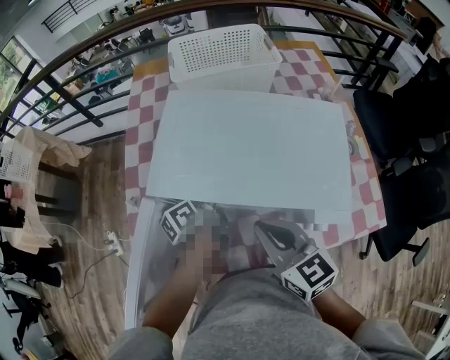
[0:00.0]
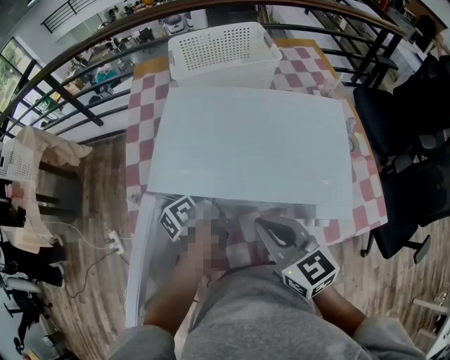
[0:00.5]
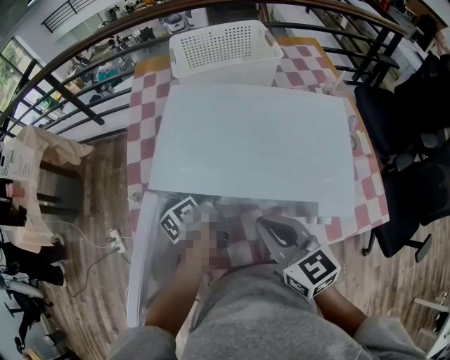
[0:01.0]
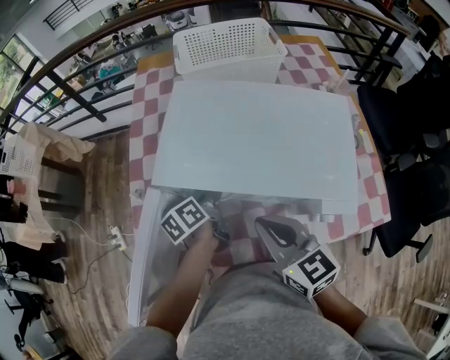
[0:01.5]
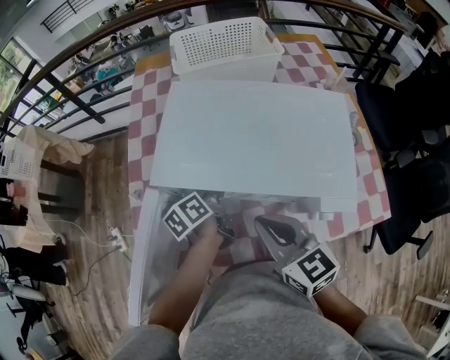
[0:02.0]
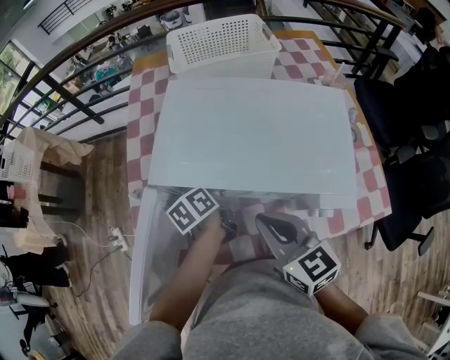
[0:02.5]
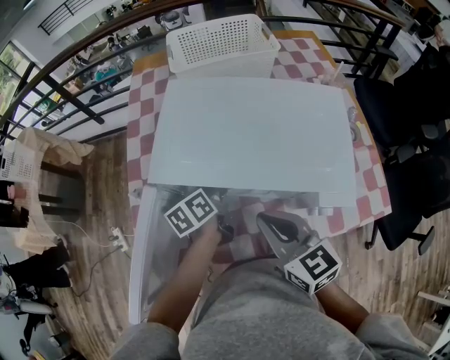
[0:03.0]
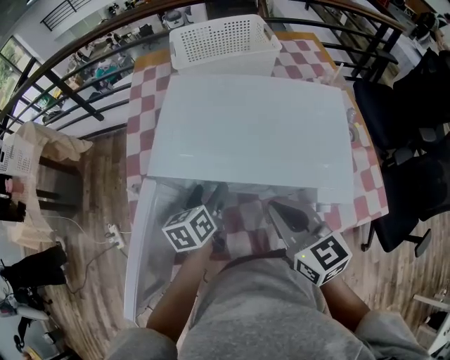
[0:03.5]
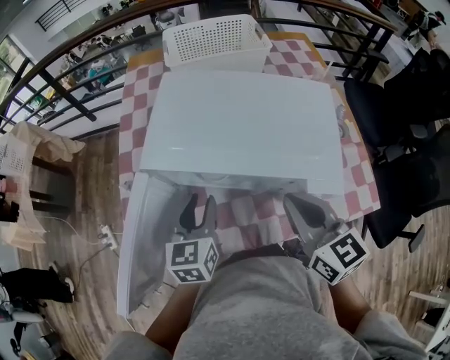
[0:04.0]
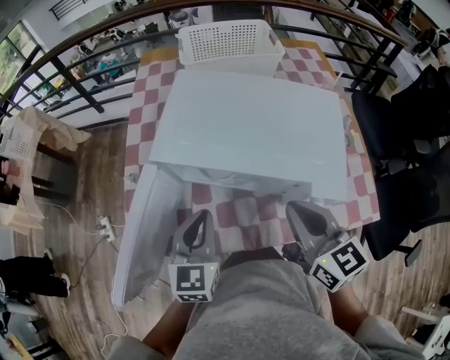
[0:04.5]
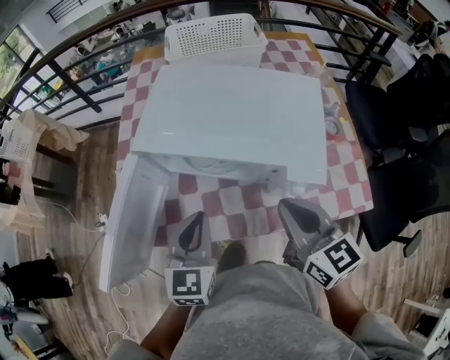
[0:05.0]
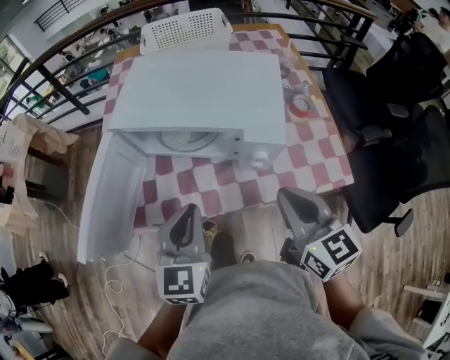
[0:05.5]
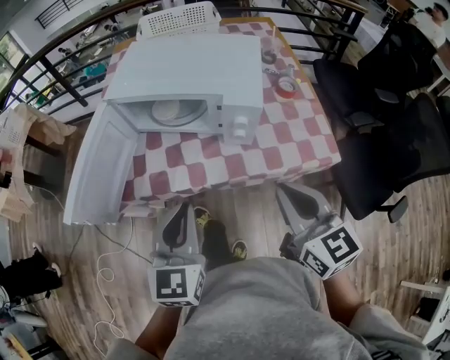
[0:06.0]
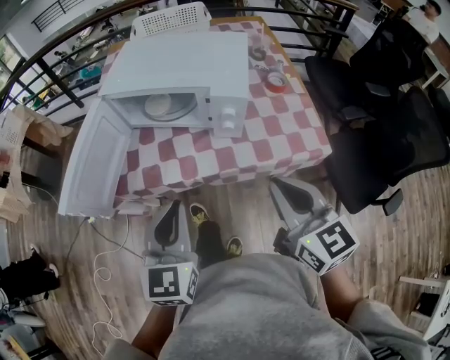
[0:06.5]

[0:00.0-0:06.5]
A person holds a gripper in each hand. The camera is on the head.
0:00.0 to 0:02.0: The grippers make only small movements.
0:02.0 to 0:04.5: The left gripper travels backward and upward by roughly 20 cm, rolls clockwise, seen from behind, by some 60 degrees, and closes its fingers, while the right gripper goes roughly 10 cm to the right.
0:04.5 to 0:06.5: Both grippers travel together backward and to the right, approximately 25 cm.

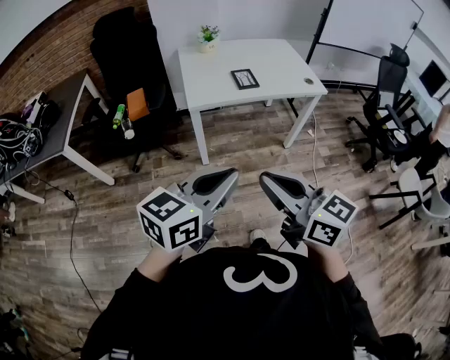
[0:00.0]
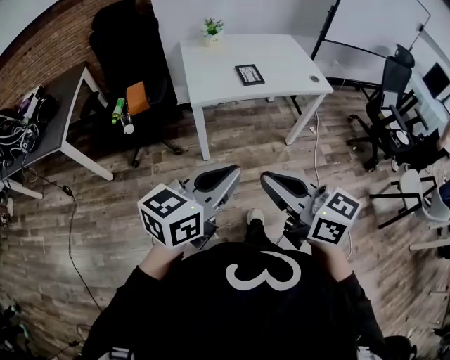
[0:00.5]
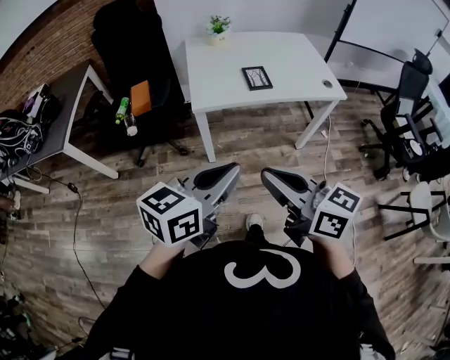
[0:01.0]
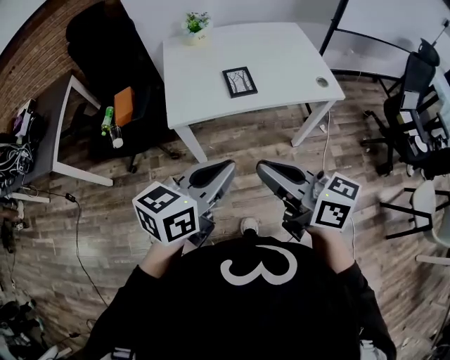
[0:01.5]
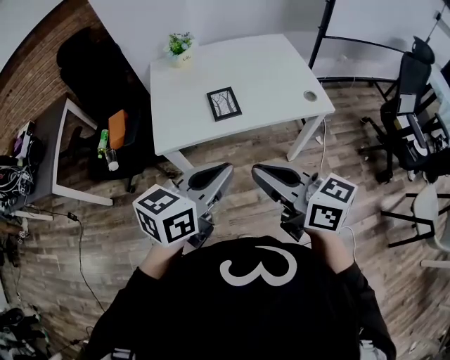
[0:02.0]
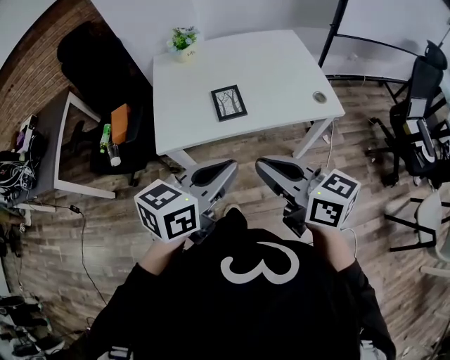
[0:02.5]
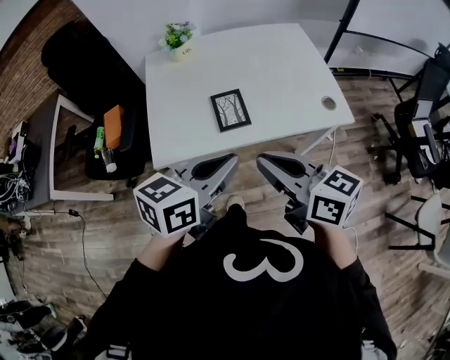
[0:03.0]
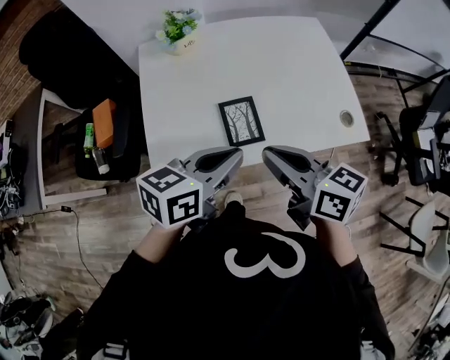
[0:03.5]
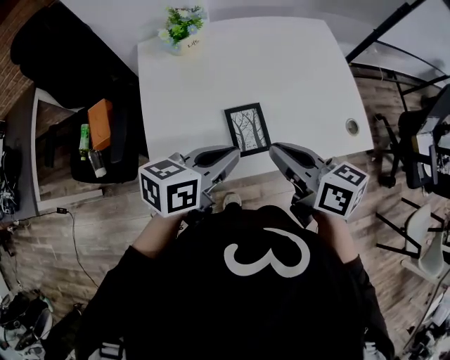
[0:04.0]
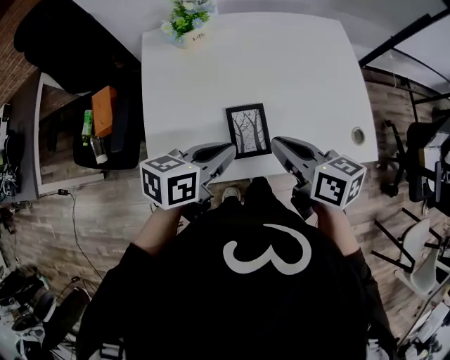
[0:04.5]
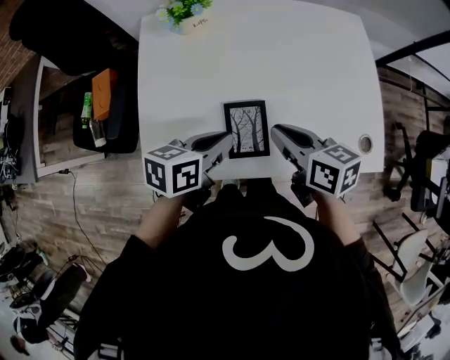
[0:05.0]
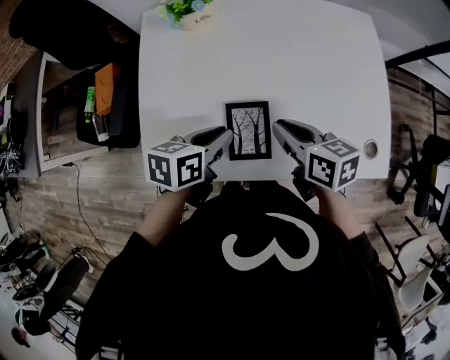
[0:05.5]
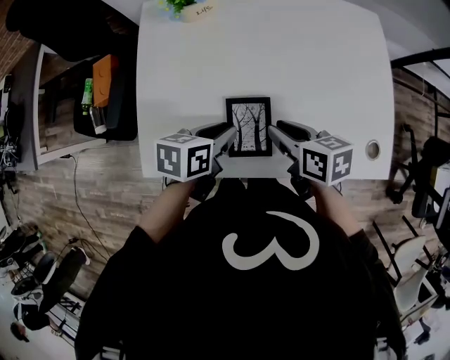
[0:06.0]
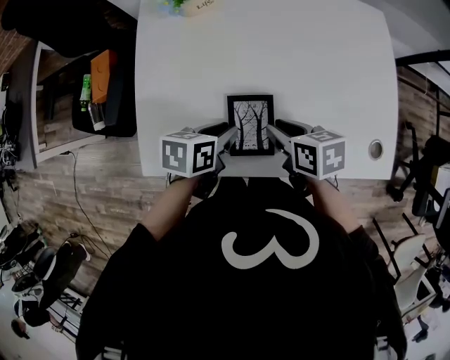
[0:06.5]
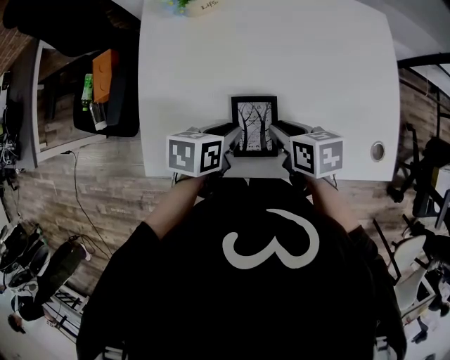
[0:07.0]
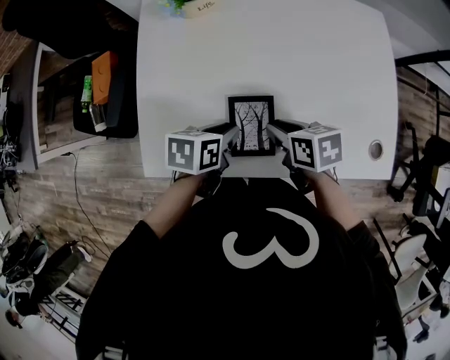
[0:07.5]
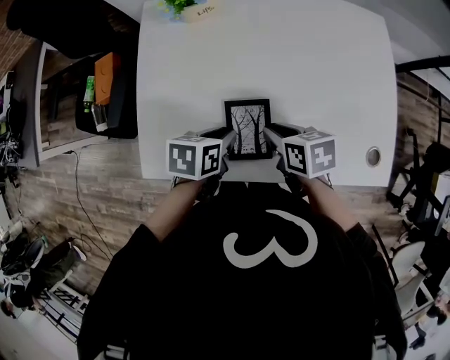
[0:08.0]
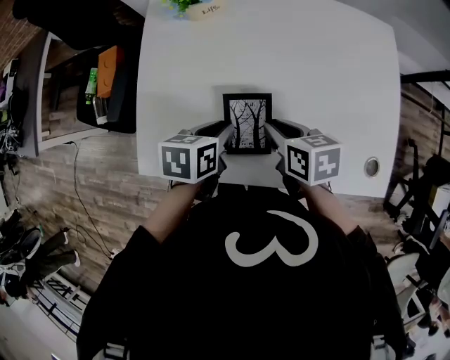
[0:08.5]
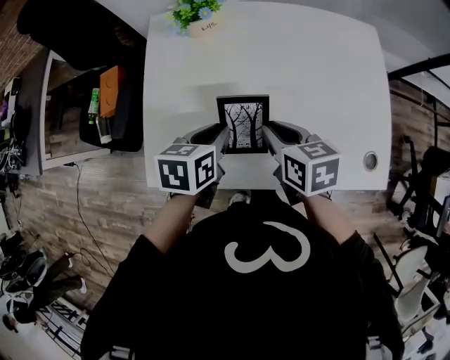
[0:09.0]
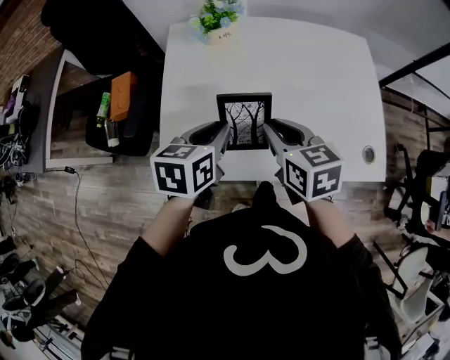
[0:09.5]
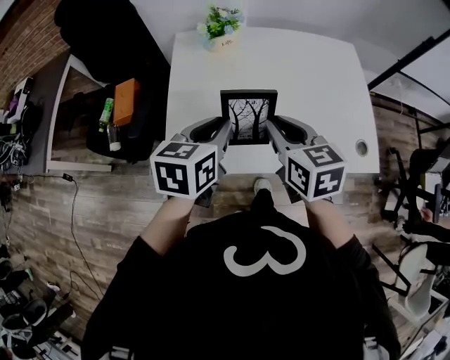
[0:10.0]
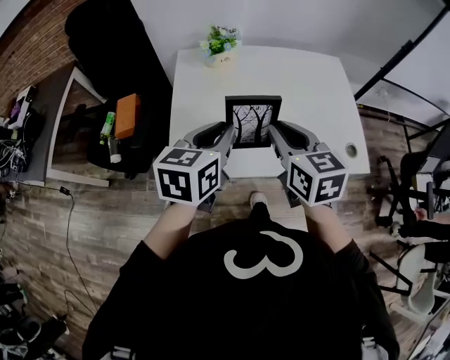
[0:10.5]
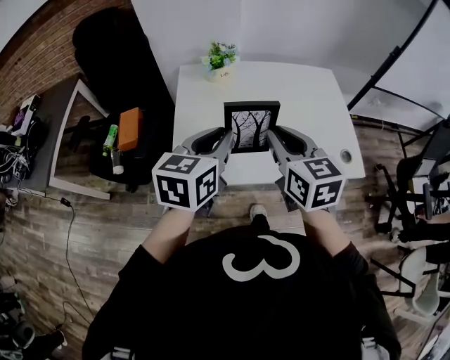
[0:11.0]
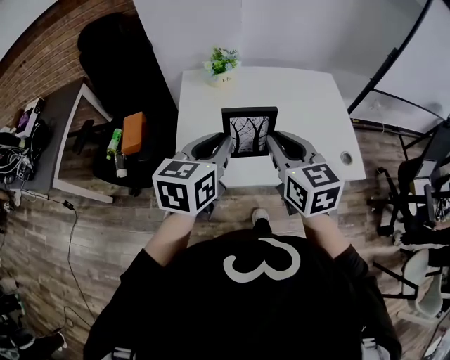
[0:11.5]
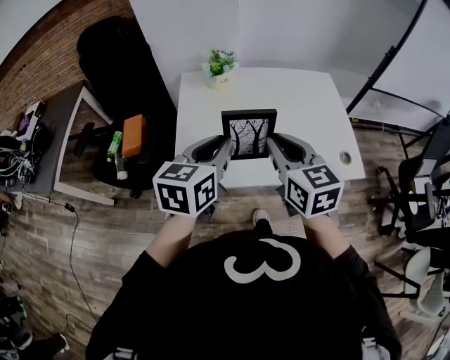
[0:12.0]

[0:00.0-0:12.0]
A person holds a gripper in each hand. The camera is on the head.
0:00.0 to 0:02.0: The two grippers go roughly 35 cm forward and to the right.
0:02.0 to 0:04.0: The grippers both shift forward by approximately 30 cm. The right gripper changes its angle by about 20 degrees.
0:04.0 to 0:06.0: Both grippers travel together downward and forward, some 15 cm. The right gripper turns by some 20 degrees, while the left gripper changes its angle by approximately 30 degrees.
0:06.0 to 0:08.0: The grippers make only small movements.
0:08.0 to 0:10.0: The grippers both shift upward by some 20 cm. The right gripper turns by roughly 40 degrees. The left gripper swivels roughly 30 degrees.
0:10.0 to 0:12.0: The grippers both shift upward and backward by roughly 10 cm.

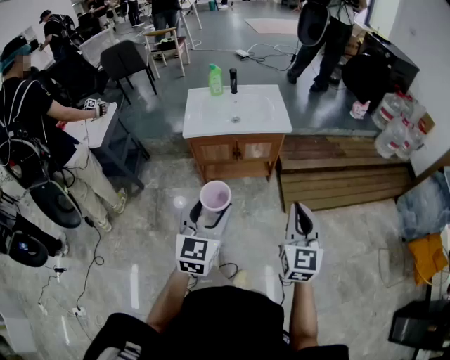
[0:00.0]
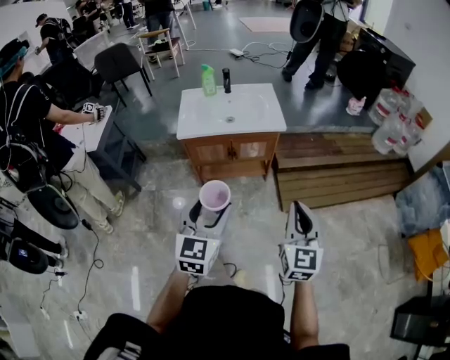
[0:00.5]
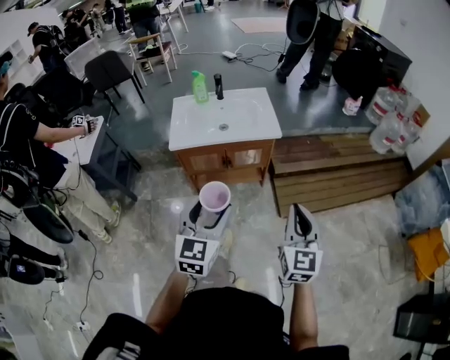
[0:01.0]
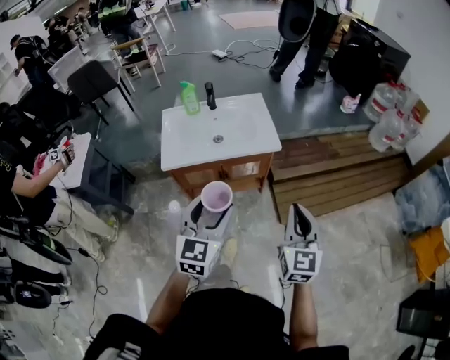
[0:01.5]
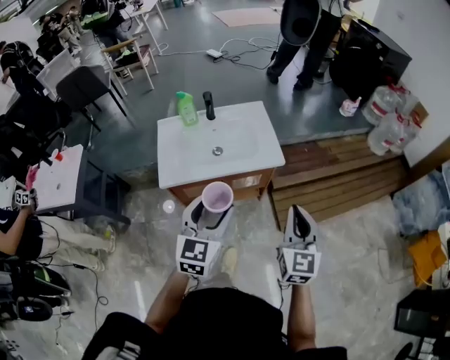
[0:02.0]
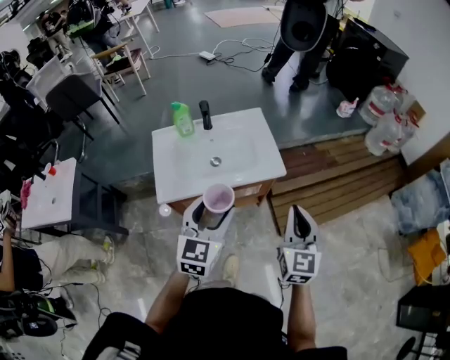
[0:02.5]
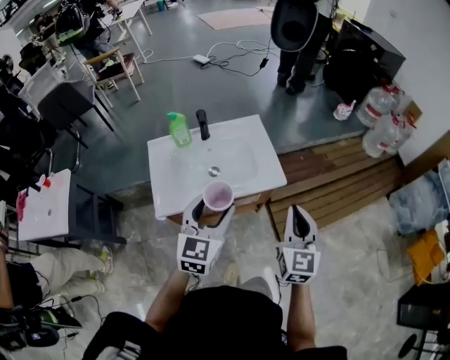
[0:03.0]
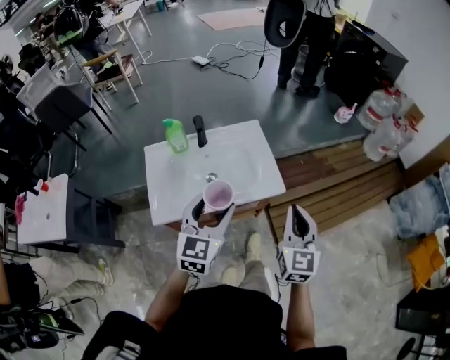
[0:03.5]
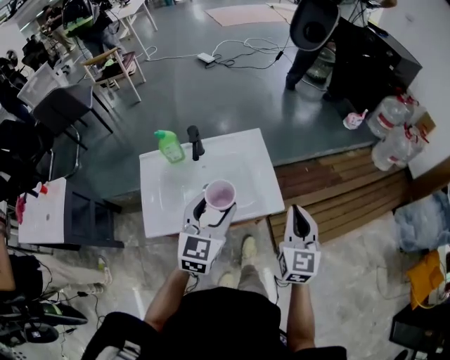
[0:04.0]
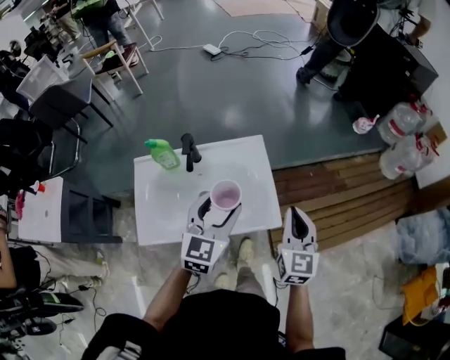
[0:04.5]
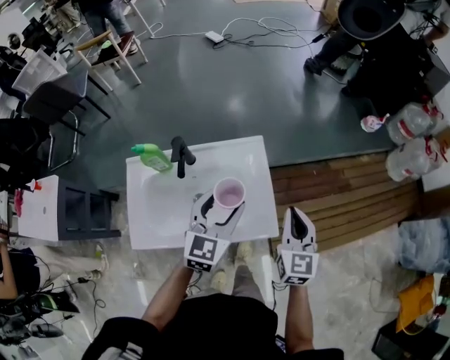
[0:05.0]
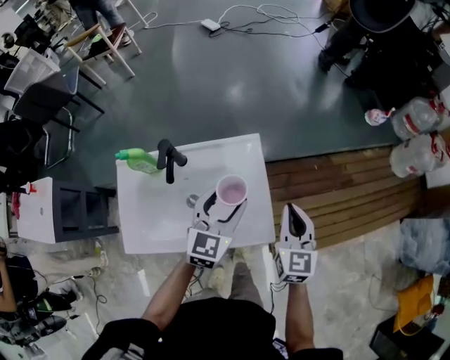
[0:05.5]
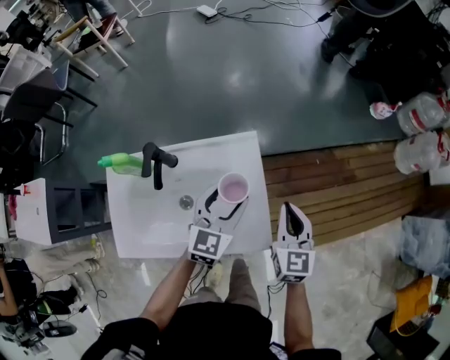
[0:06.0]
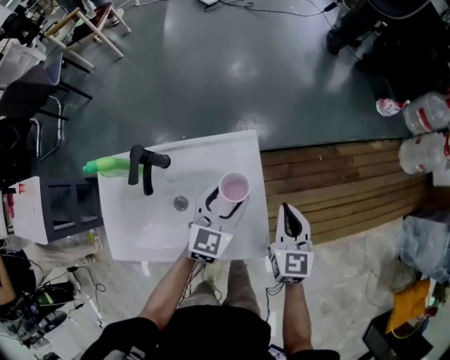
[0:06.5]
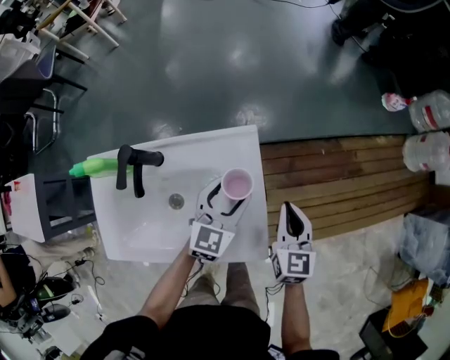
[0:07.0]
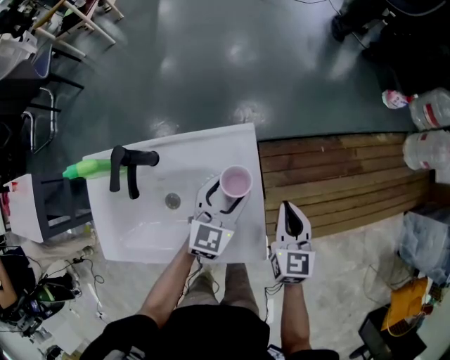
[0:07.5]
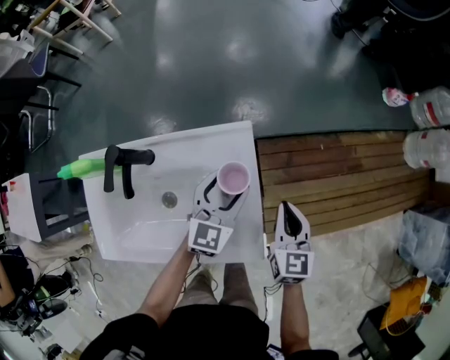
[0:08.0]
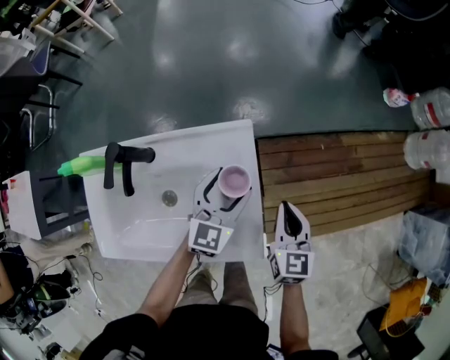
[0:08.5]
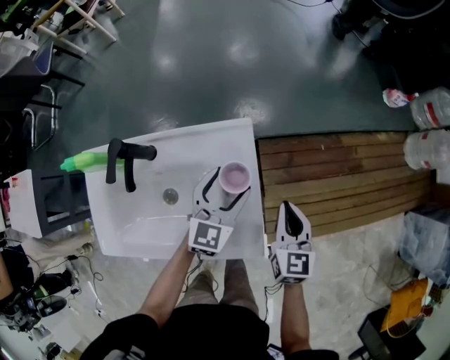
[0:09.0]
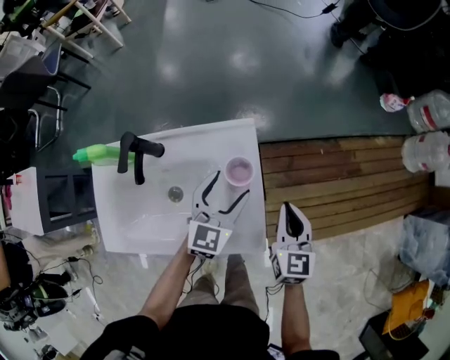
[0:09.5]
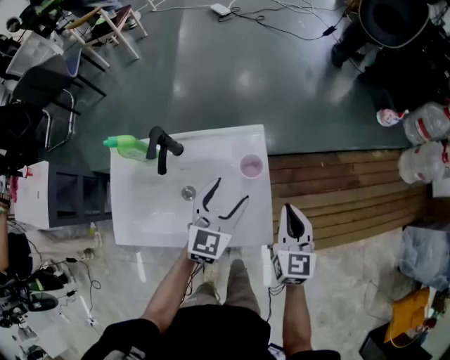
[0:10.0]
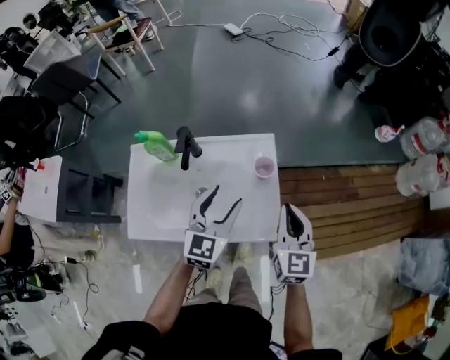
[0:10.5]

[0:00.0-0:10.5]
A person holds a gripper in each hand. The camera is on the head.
0:00.0 to 0:02.0: Both grippers travel together forward, roughly 30 cm.
0:02.0 to 0:04.0: Both grippers travel together forward, some 25 cm.
0:04.0 to 0:06.5: Both grippers move forward and downward, roughly 30 cm.
0:06.5 to 0:08.5: The grippers both shift downward by roughly 5 cm.
0:08.5 to 0:10.5: The right gripper goes about 20 cm upward and backward; the left gripper is displaced upward, backward and to the left by about 20 cm.
